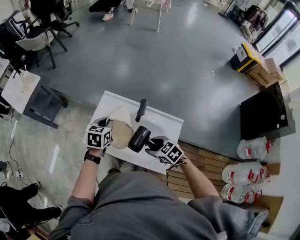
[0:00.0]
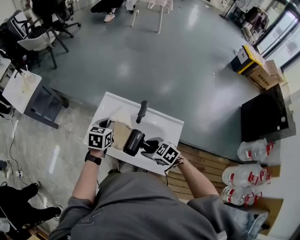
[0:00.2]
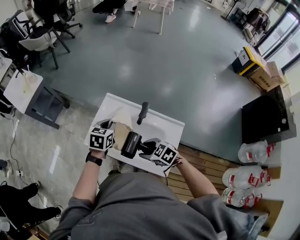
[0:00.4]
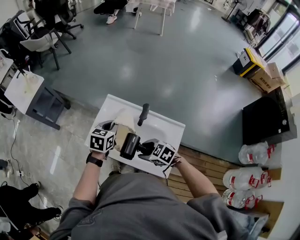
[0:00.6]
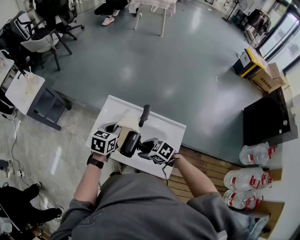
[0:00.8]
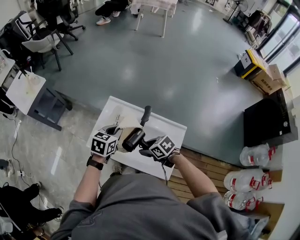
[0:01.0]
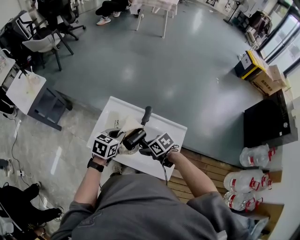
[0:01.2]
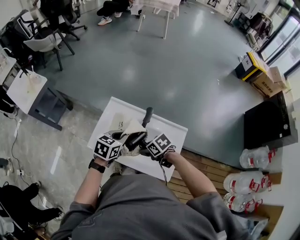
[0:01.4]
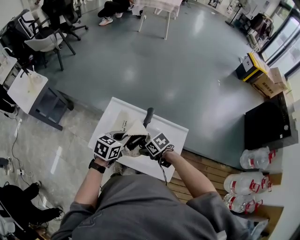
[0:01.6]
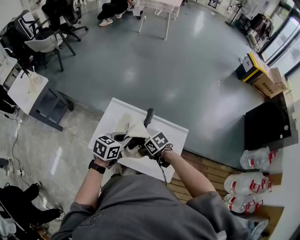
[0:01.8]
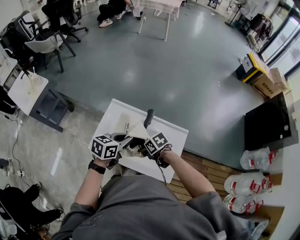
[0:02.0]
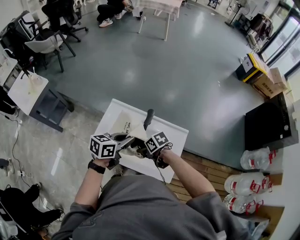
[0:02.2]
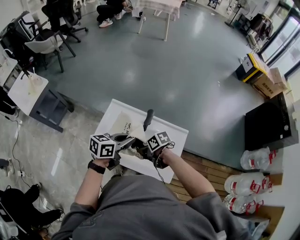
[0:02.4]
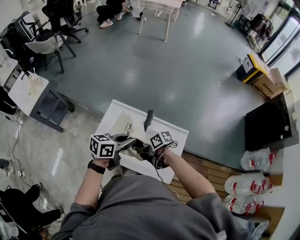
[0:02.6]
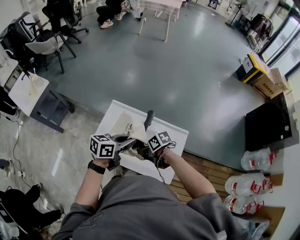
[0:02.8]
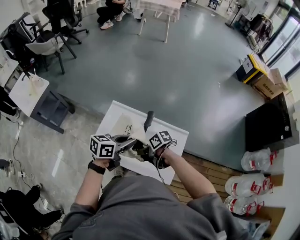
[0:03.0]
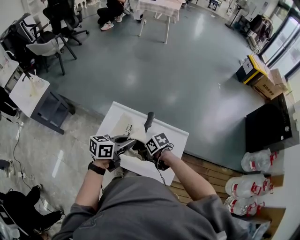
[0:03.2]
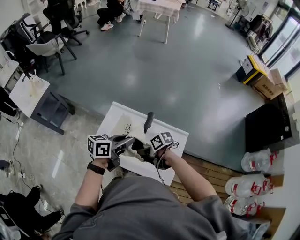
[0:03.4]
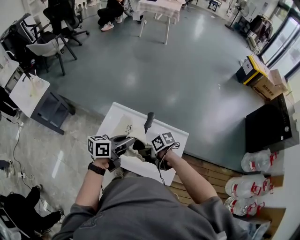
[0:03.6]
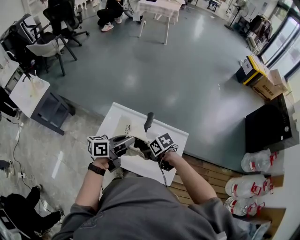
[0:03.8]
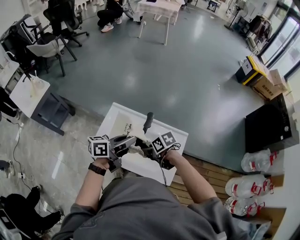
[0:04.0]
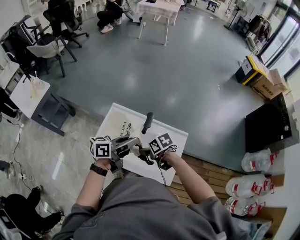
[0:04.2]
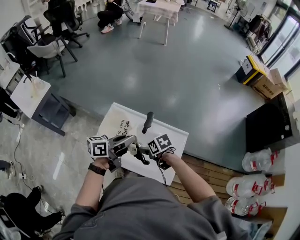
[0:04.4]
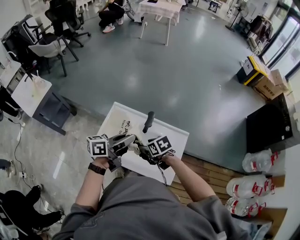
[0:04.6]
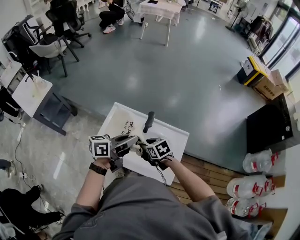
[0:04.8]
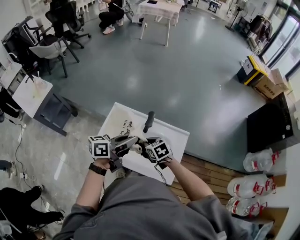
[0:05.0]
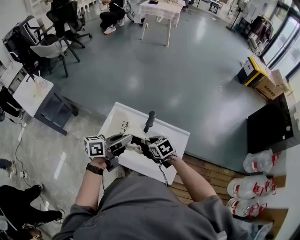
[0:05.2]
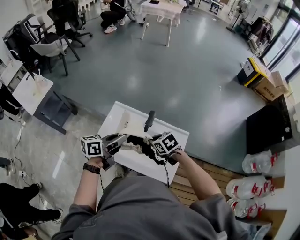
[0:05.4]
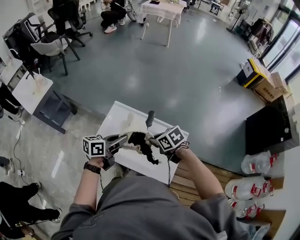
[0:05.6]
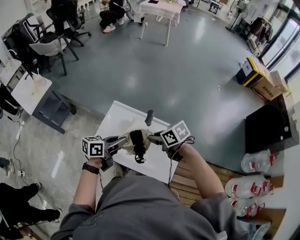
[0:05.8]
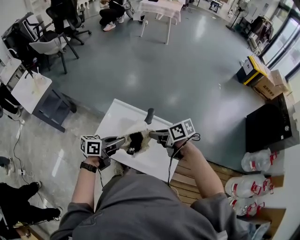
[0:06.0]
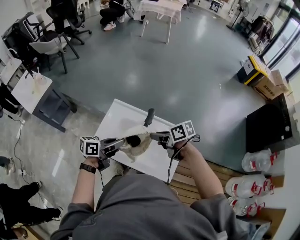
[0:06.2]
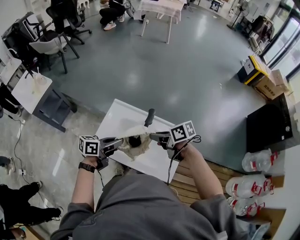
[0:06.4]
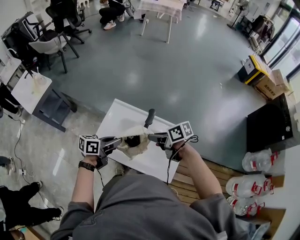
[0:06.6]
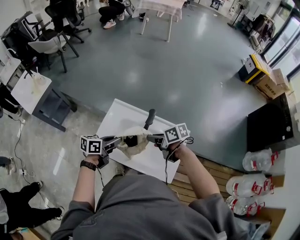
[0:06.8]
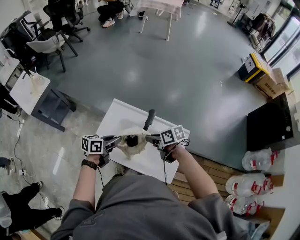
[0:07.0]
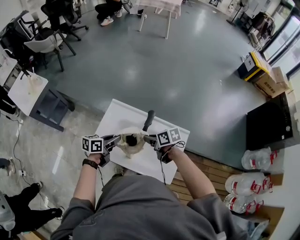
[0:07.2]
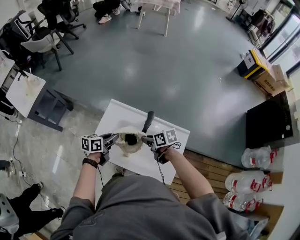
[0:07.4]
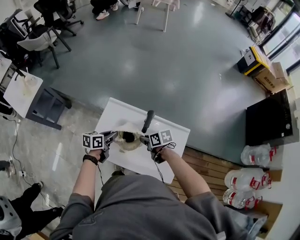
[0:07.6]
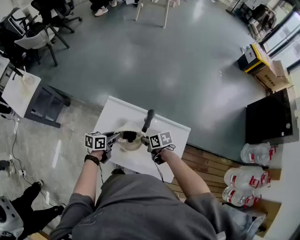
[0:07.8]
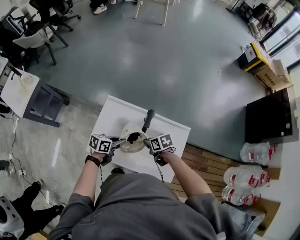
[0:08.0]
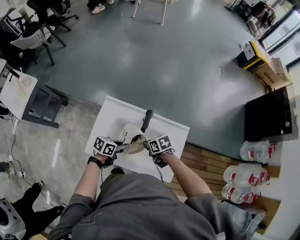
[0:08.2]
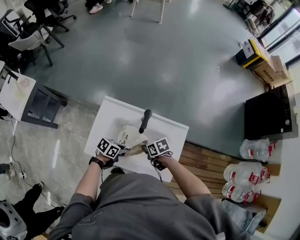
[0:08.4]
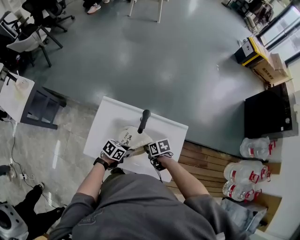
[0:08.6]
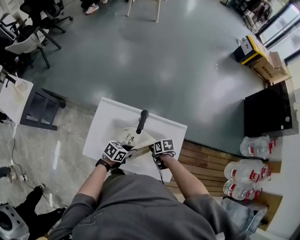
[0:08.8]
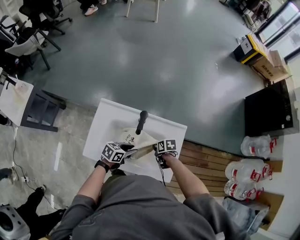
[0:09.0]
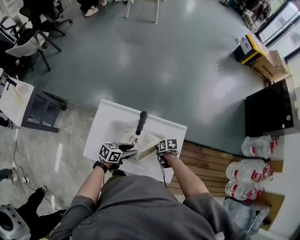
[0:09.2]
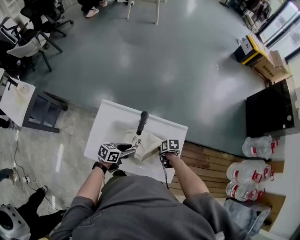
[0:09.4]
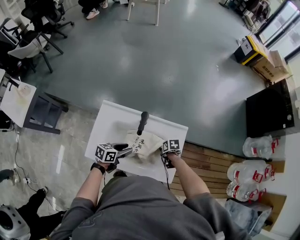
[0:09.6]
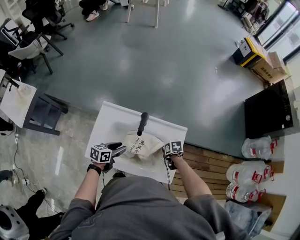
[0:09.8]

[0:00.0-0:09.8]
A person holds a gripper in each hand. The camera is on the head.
0:00.0 to 0:01.4: The right gripper changes place by some 5 cm, and turns by some 20 degrees; the left gripper ends up some 5 cm from where it was.
0:01.4 to 0:02.8: The left gripper ends up approximately 5 cm from where it was, and changes its angle by roughly 30 degrees. The right gripper rotates about 20 degrees.
0:02.8 to 0:04.2: There are only small adjustments of the grippers.
0:04.2 to 0:05.6: The left gripper ends up about 5 cm from where it was. The right gripper goes about 5 cm upward, and closes.
0:05.6 to 0:07.0: The left gripper is displaced downward by approximately 10 cm; the right gripper changes its angle by some 30 degrees.
0:07.0 to 0:08.4: The two grippers go about 15 cm downward. The left gripper swivels approximately 30 degrees.
0:08.4 to 0:09.8: The right gripper moves about 15 cm, and swivels approximately 30 degrees. Meanwhile the left gripper ends up some 5 cm from where it was, rotates roughly 20 degrees, and opens.

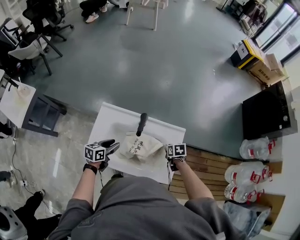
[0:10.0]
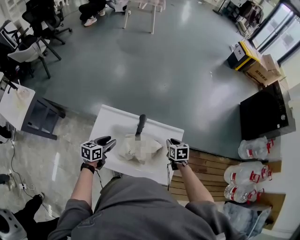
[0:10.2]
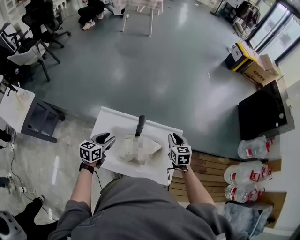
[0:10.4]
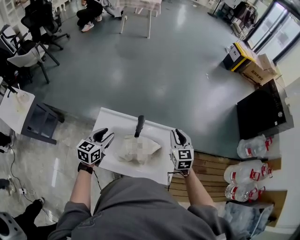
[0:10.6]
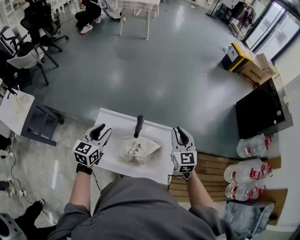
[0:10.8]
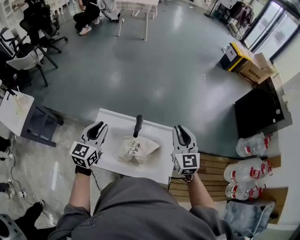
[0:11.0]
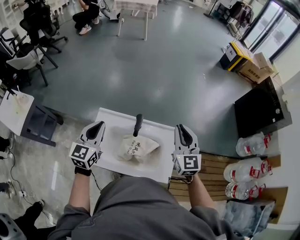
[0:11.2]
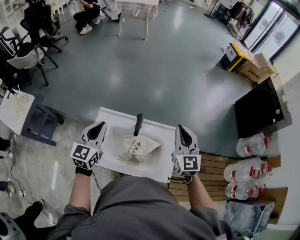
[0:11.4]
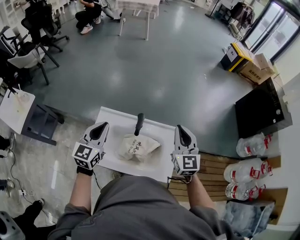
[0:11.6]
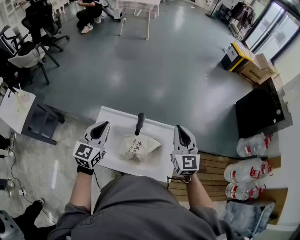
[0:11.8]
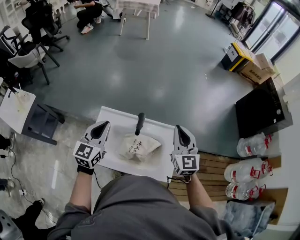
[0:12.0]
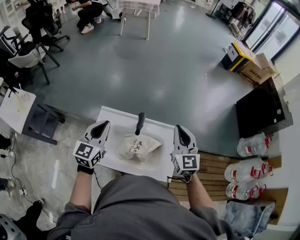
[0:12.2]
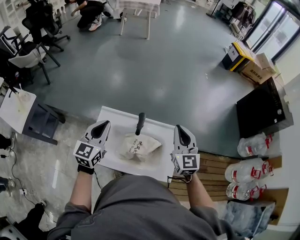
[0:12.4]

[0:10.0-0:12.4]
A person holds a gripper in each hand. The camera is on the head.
0:10.0 to 0:11.2: The two grippers go about 30 cm upward. The left gripper swivels about 50 degrees, and closes. The right gripper tips its fingers upward by roughly 60 degrees.
0:11.2 to 0:12.4: The grippers move only a little.

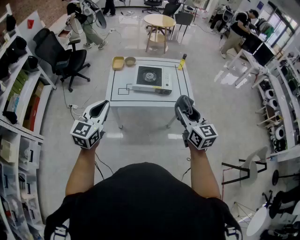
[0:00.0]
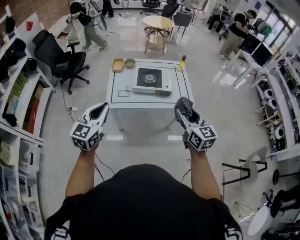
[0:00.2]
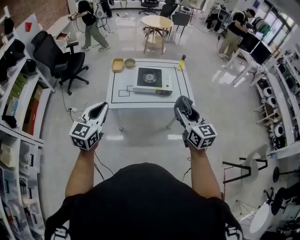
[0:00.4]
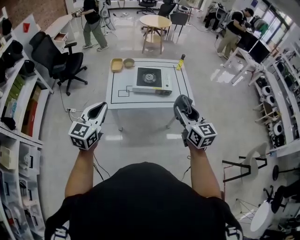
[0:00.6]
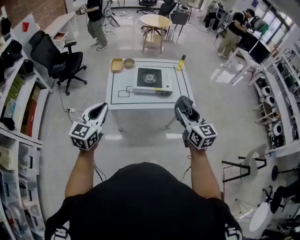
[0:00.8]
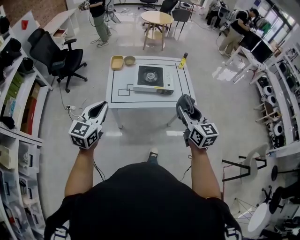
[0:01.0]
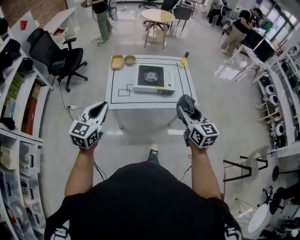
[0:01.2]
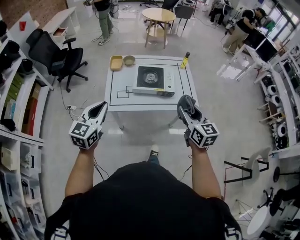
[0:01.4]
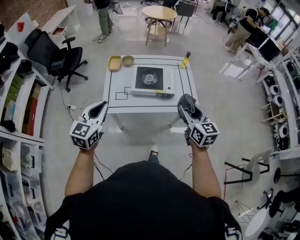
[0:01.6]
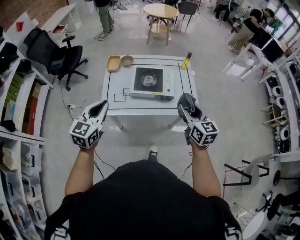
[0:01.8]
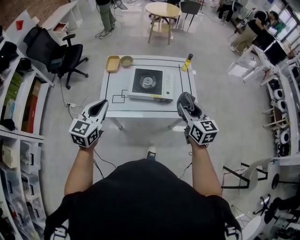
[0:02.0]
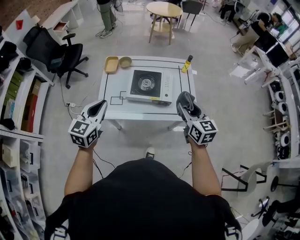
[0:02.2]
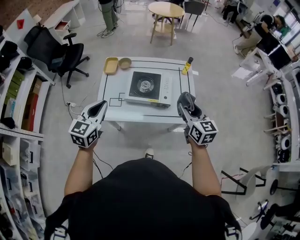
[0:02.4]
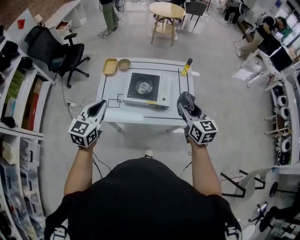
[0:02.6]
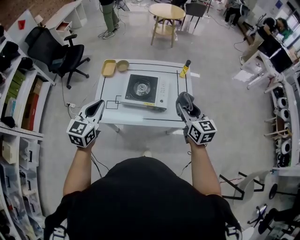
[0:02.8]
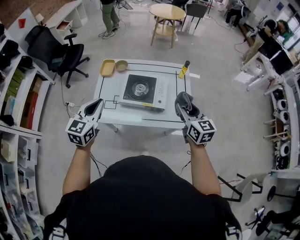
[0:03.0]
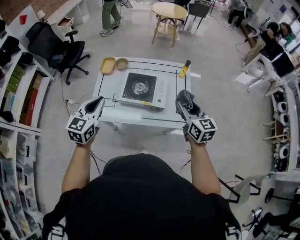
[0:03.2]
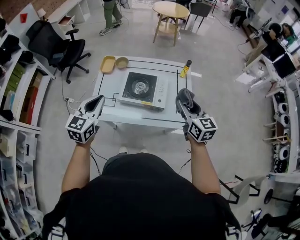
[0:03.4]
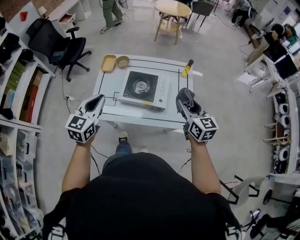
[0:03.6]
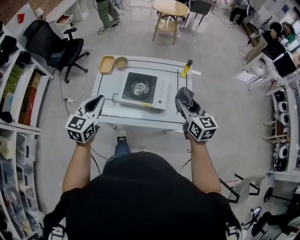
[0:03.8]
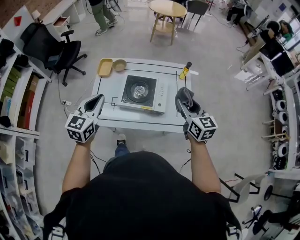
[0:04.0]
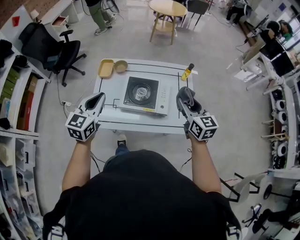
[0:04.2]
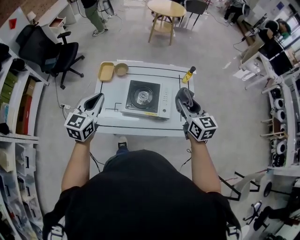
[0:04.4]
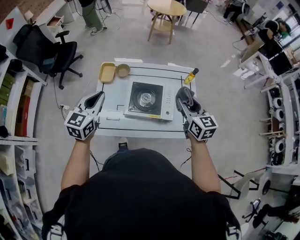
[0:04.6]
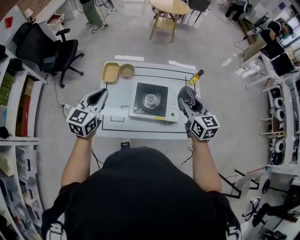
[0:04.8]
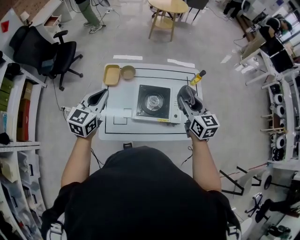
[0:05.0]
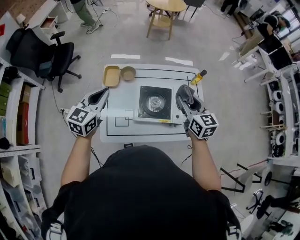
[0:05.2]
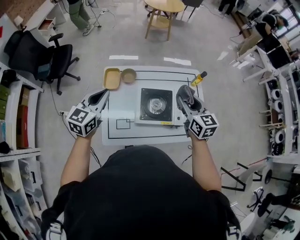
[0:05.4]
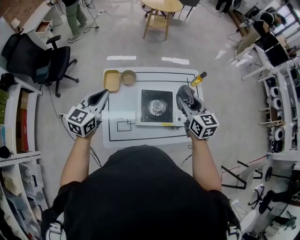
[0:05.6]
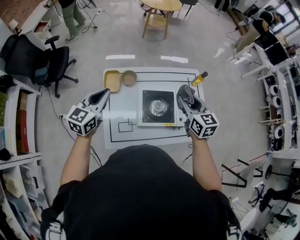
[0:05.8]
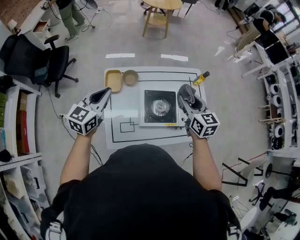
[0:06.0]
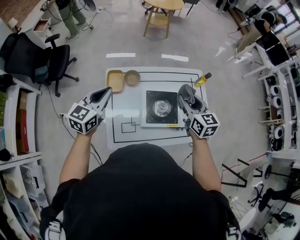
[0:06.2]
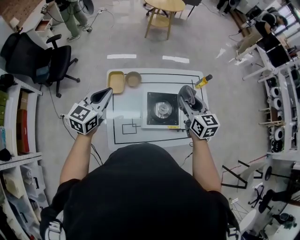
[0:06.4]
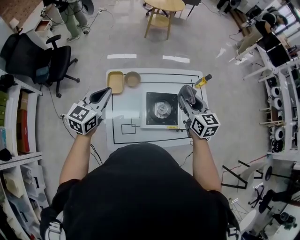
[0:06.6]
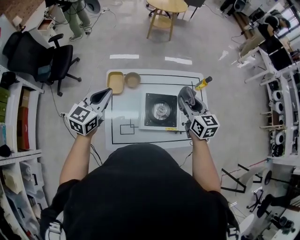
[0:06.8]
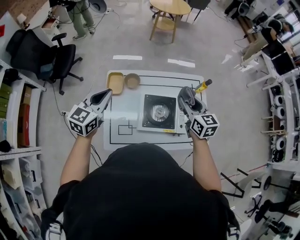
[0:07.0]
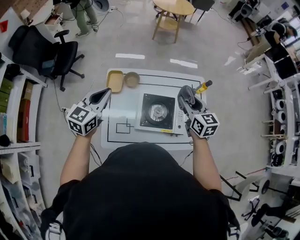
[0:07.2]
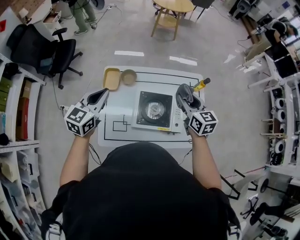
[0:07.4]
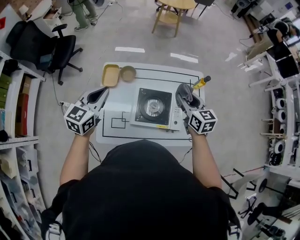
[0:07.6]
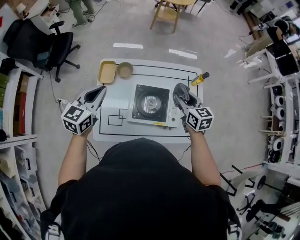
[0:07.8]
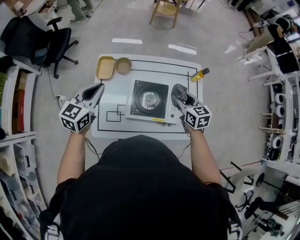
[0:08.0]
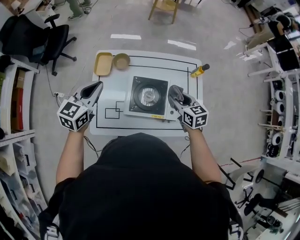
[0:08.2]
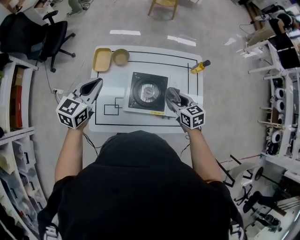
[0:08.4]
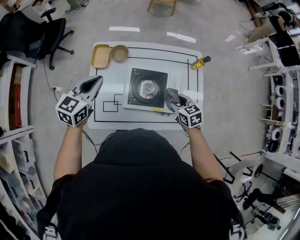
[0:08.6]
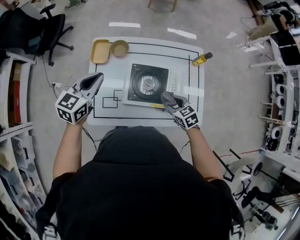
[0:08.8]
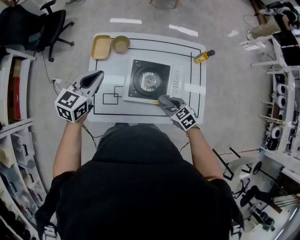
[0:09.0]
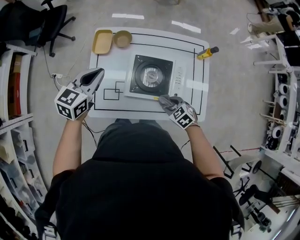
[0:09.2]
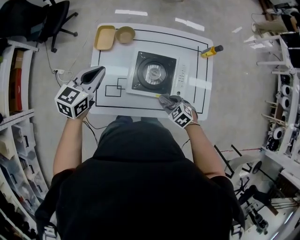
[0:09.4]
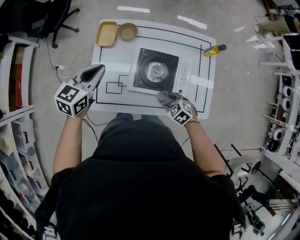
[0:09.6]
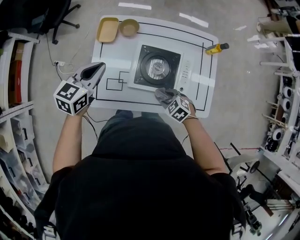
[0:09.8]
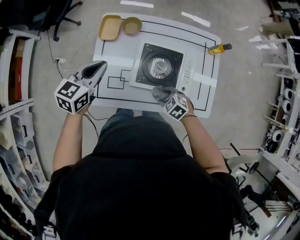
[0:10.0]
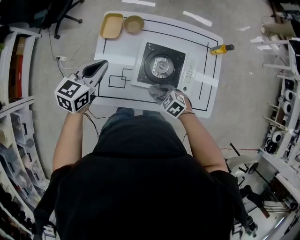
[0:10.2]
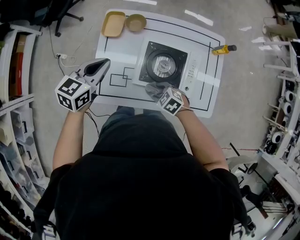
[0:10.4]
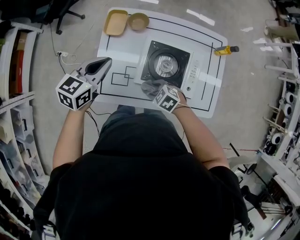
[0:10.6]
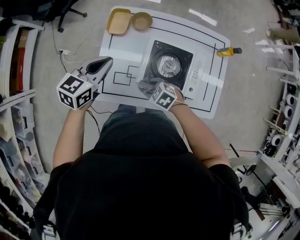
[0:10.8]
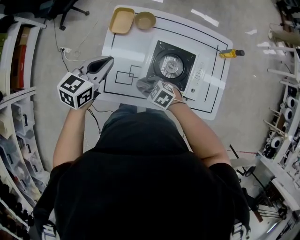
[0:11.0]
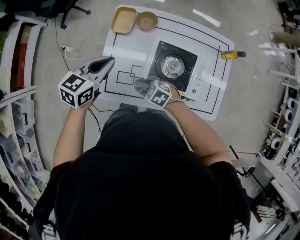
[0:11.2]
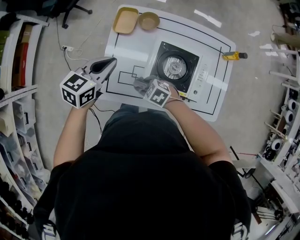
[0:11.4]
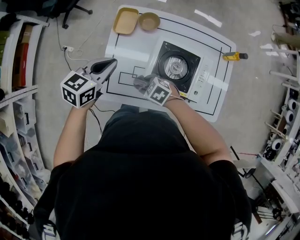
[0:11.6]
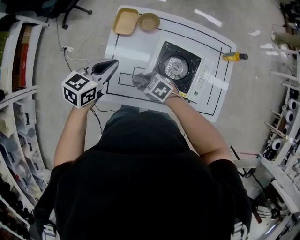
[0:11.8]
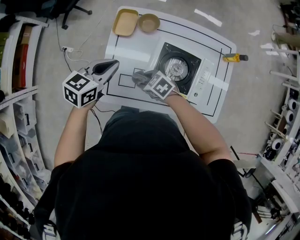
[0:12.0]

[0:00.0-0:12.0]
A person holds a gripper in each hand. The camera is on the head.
0:00.0 to 0:01.6: Both grippers move forward and downward, approximately 15 cm.
0:01.6 to 0:03.0: Both grippers move forward and to the right, about 20 cm.
0:03.0 to 0:04.4: The right gripper moves forward and to the left, approximately 15 cm, while the left gripper goes roughly 15 cm forward.
0:04.4 to 0:06.0: The right gripper moves to the left and forward, approximately 20 cm; the left gripper moves forward and to the left, roughly 25 cm.
0:06.0 to 0:07.6: Both grippers travel together to the right, approximately 5 cm.
0:07.6 to 0:09.0: The left gripper travels downward by roughly 10 cm, while the right gripper goes about 25 cm downward and backward, and changes its angle by approximately 40 degrees.
0:09.0 to 0:10.4: The right gripper is displaced to the left and downward by about 15 cm, and rotates approximately 20 degrees; the left gripper changes place by about 5 cm.
0:10.4 to 0:12.0: The right gripper moves roughly 15 cm.
